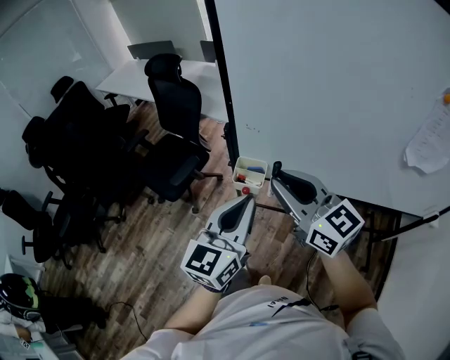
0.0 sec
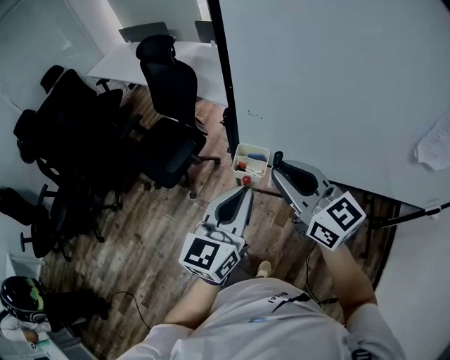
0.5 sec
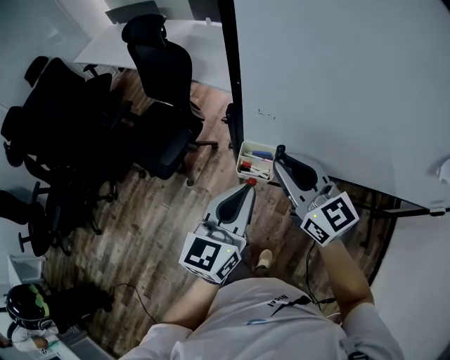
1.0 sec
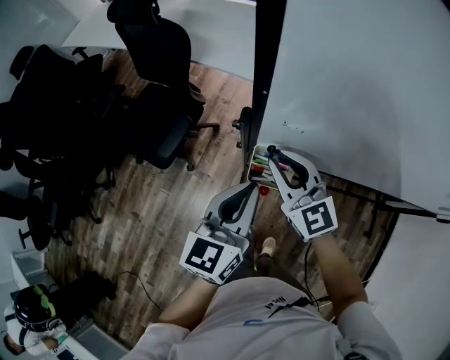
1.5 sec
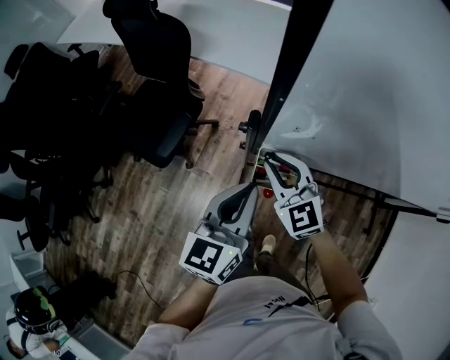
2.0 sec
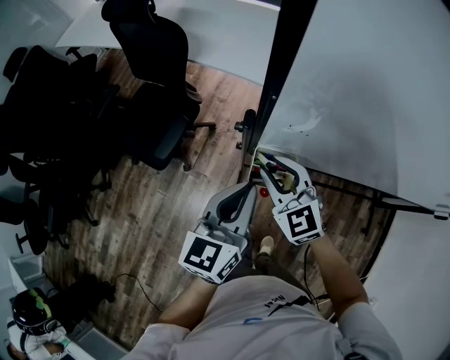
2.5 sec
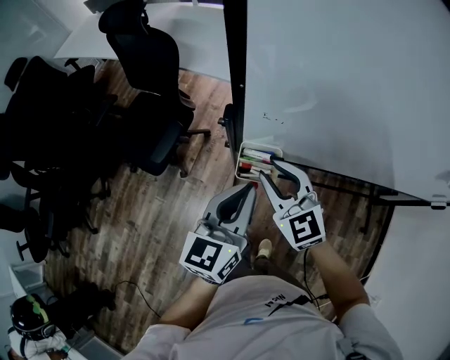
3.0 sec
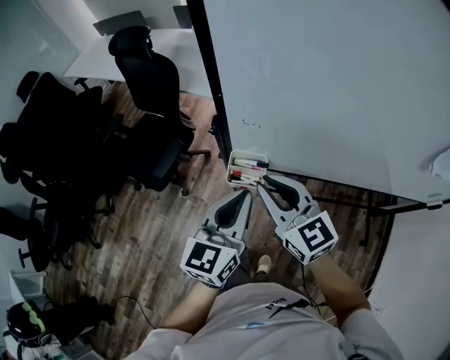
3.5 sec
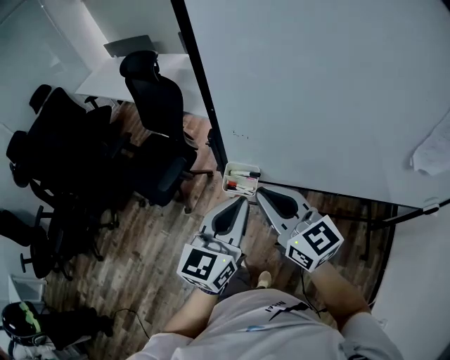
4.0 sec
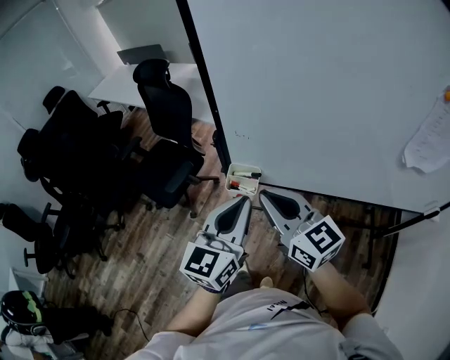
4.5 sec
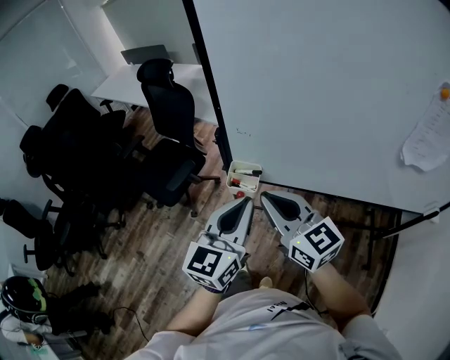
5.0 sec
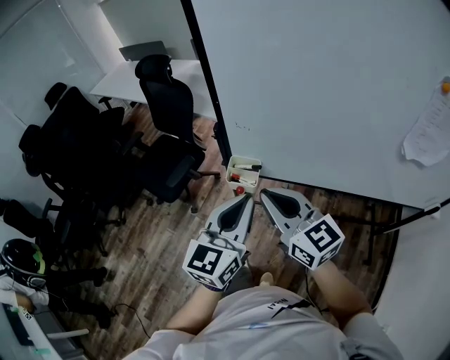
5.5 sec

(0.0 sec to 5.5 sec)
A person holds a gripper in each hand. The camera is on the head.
0.0 sec - 2.0 sec: The right gripper goes about 30 cm downward and forward, and turns by some 30 degrees. The left gripper moves forward and downward, some 20 cm.
2.0 sec - 3.5 sec: The right gripper heads upward, backward and to the right, covering approximately 15 cm, and rotates about 20 degrees, while the left gripper goes roughly 10 cm backward, upward and to the right.
3.5 sec - 5.5 sec: The two grippers go about 10 cm backward and upward.

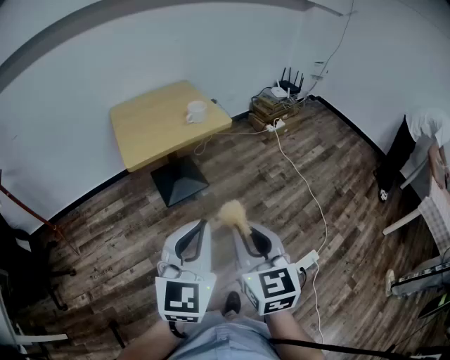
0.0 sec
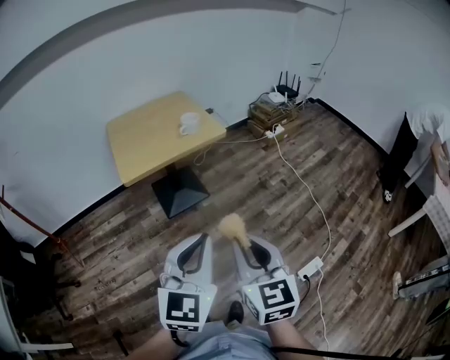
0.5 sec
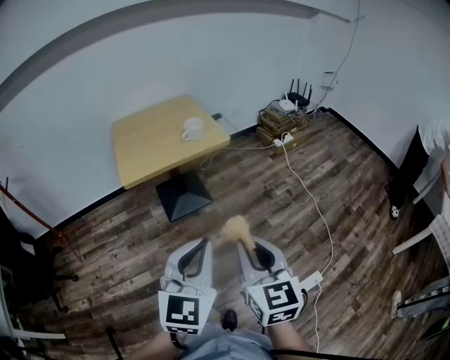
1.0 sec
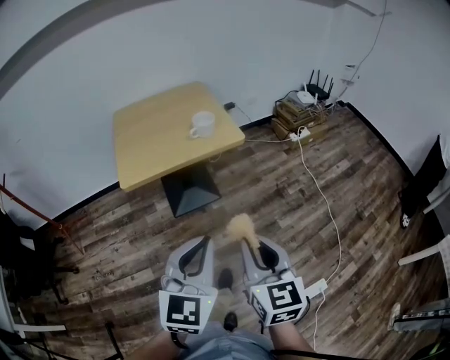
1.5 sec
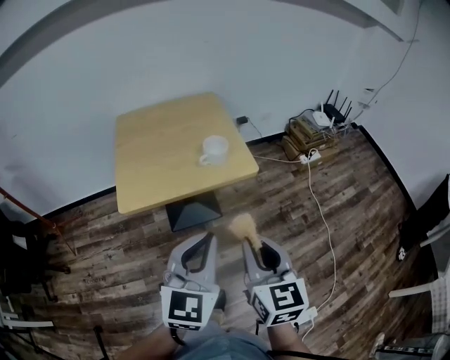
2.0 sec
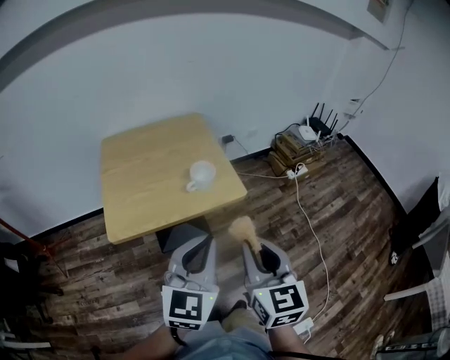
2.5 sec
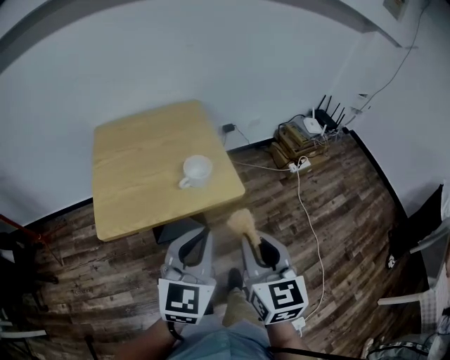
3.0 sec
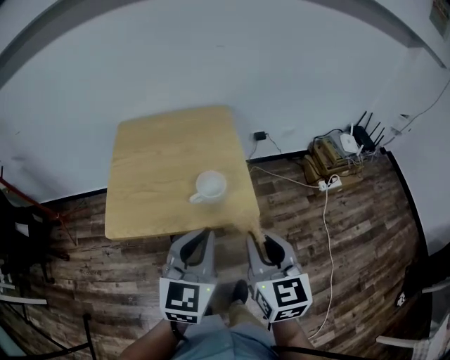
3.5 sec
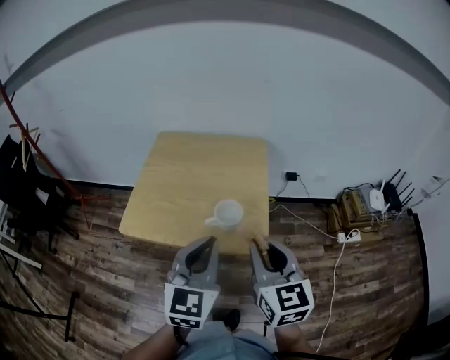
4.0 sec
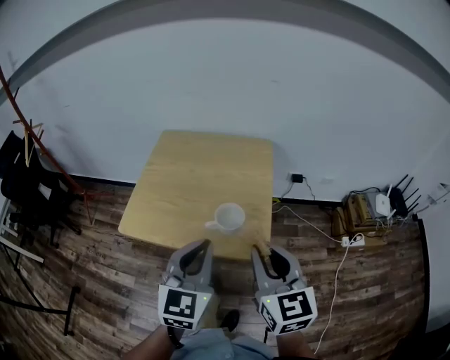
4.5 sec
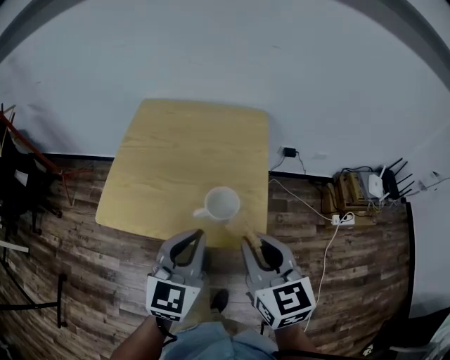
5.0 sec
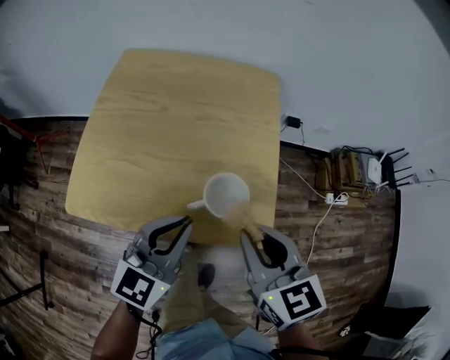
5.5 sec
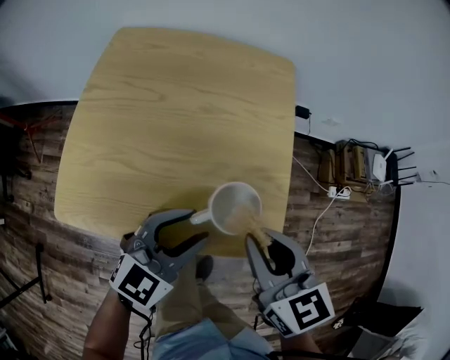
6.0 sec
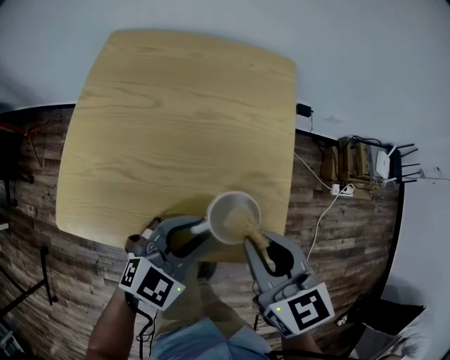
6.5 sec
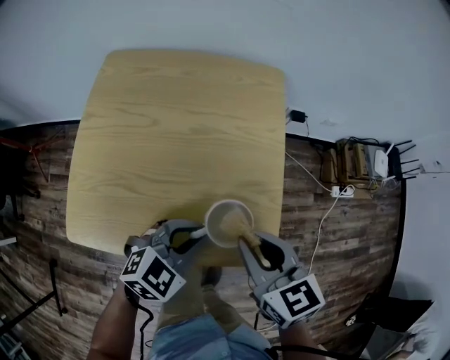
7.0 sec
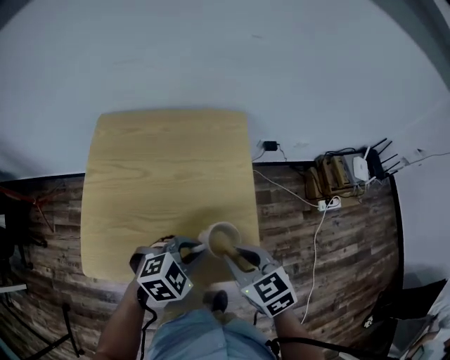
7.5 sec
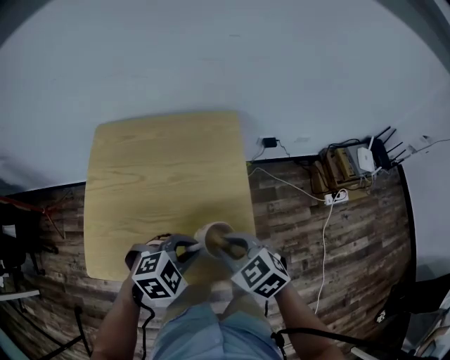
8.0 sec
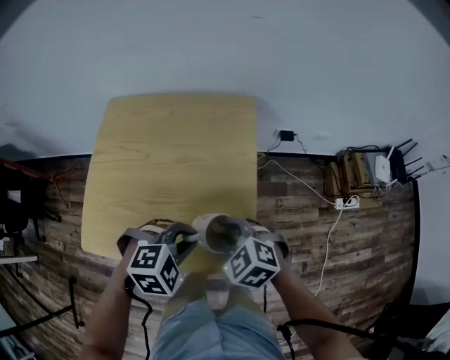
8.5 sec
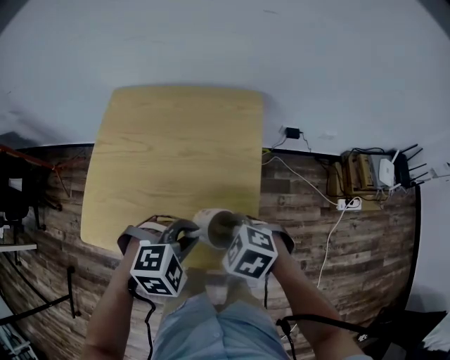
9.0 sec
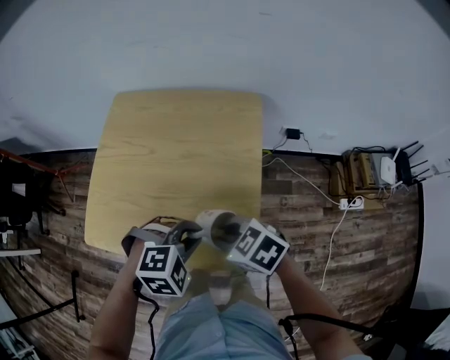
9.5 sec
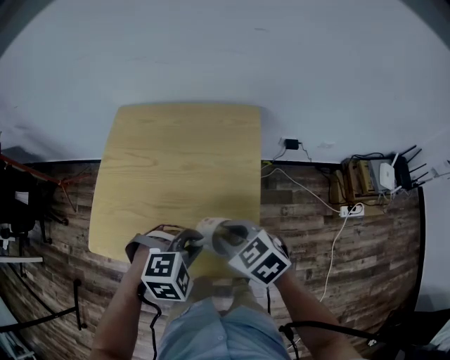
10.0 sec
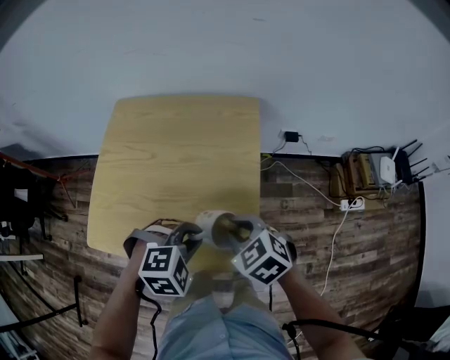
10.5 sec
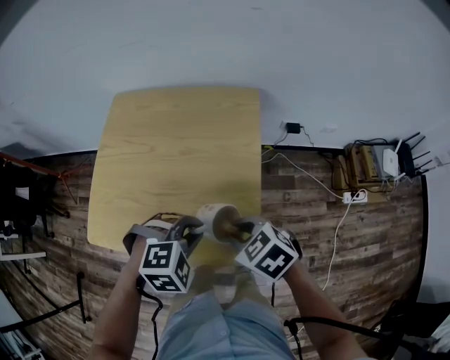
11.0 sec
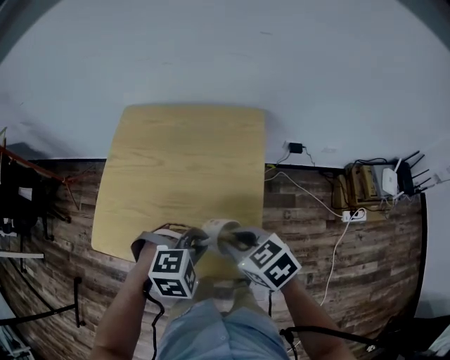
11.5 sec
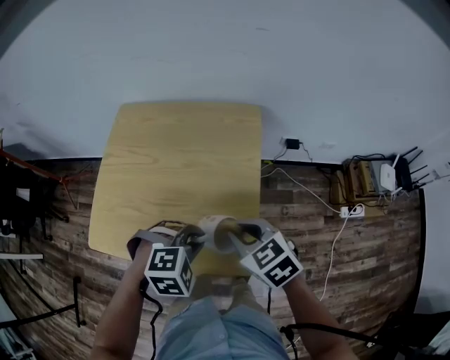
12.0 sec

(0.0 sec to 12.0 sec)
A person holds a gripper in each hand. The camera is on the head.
0.0 sec - 2.0 sec: The two grippers go about 30 cm forward.
2.0 sec - 4.0 sec: The right gripper changes place by some 30 cm, and swivels about 30 degrees. The left gripper changes place by some 25 cm, and swivels some 30 degrees.
4.0 sec - 6.0 sec: Both grippers travel together downward and forward, approximately 20 cm. The left gripper turns by some 30 degrees, and opens its fingers. Meanwhile the right gripper changes its angle by about 20 degrees.
6.0 sec - 8.0 sec: The right gripper turns by roughly 20 degrees. Meanwhile the left gripper moves roughly 5 cm, points its fingers about 40 degrees further downward, and closes its fingers.
10.0 sec - 12.0 sec: The grippers stay close to where they were, moving slightly.

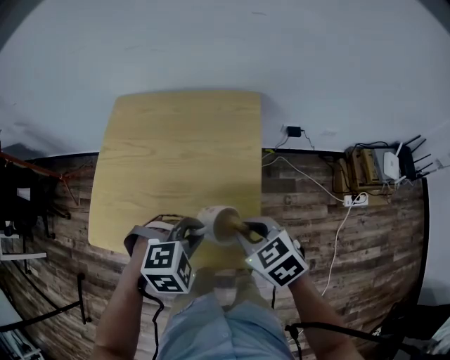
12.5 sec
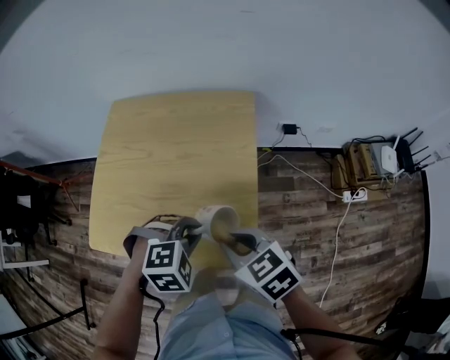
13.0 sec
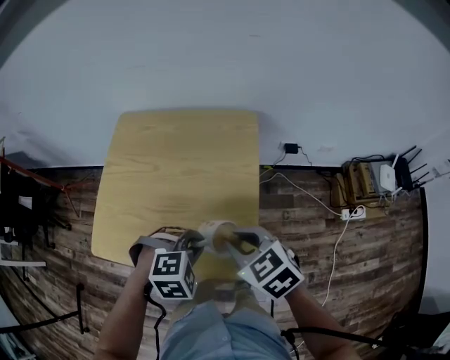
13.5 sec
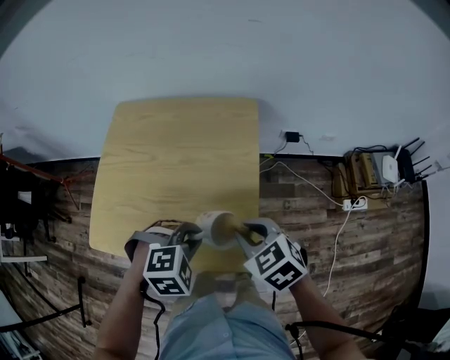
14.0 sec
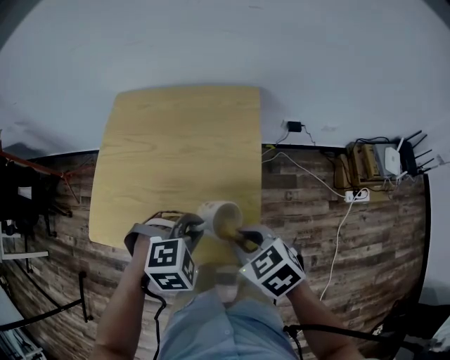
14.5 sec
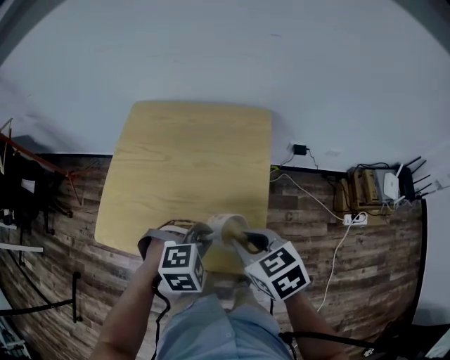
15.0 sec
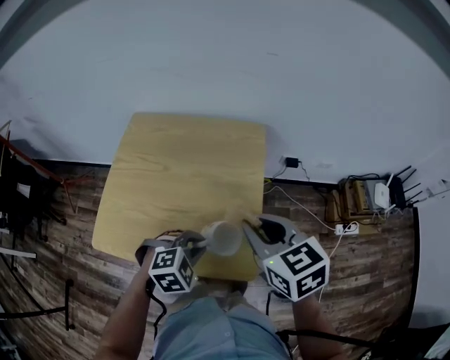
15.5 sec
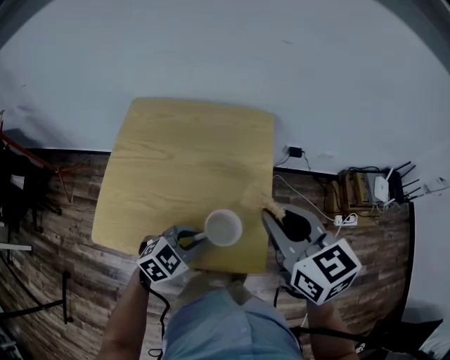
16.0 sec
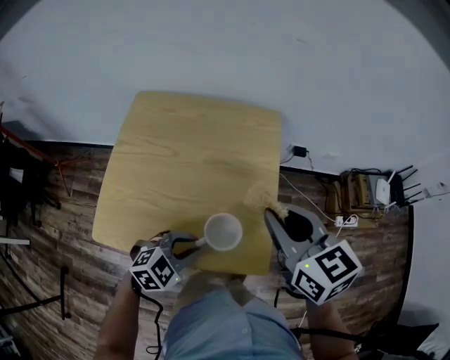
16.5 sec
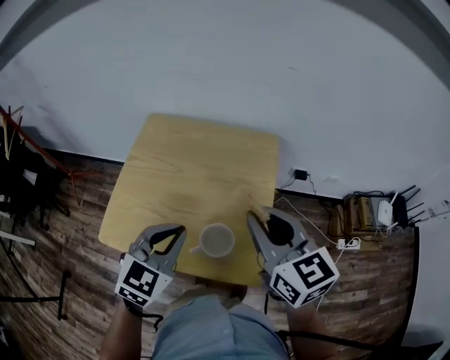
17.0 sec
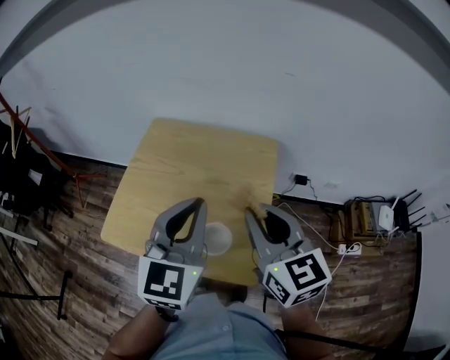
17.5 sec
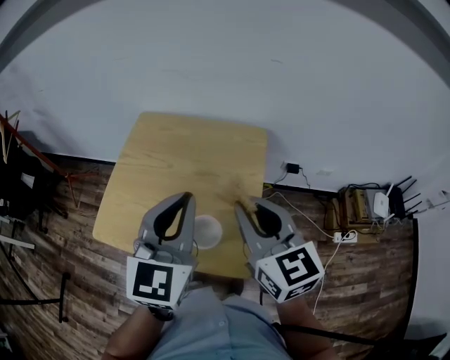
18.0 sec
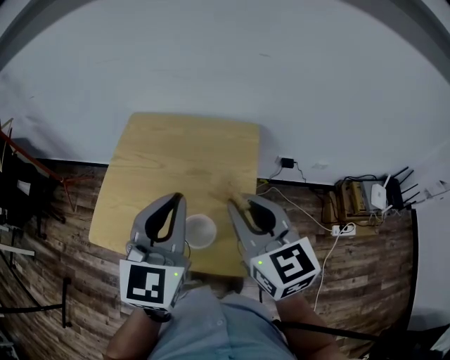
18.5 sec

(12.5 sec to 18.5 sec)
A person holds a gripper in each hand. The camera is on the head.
12.5 sec - 14.5 sec: The grippers make only small movements.
14.5 sec - 16.5 sec: The right gripper shifts approximately 15 cm upward and forward, and turns by some 30 degrees, while the left gripper shifts about 5 cm to the left, and rotates approximately 30 degrees.
16.5 sec - 18.5 sec: The left gripper is displaced upward by roughly 30 cm, and tilts its fingers roughly 40 degrees upward.

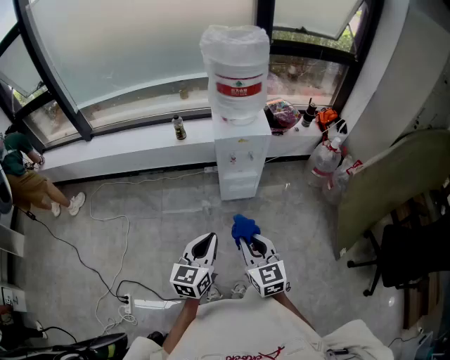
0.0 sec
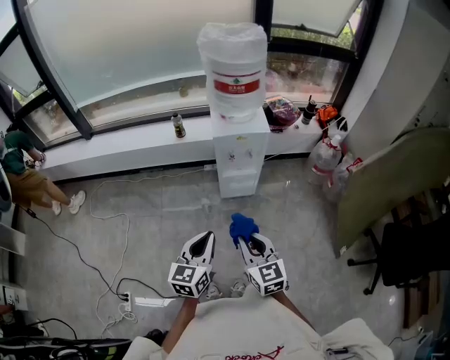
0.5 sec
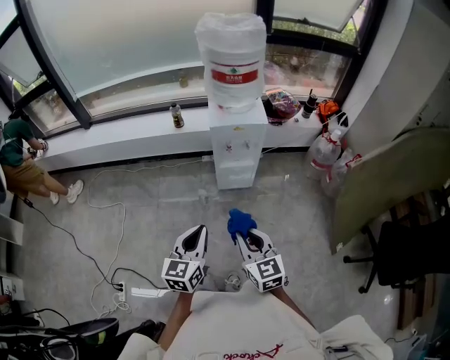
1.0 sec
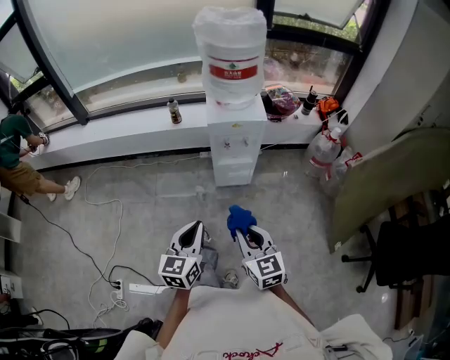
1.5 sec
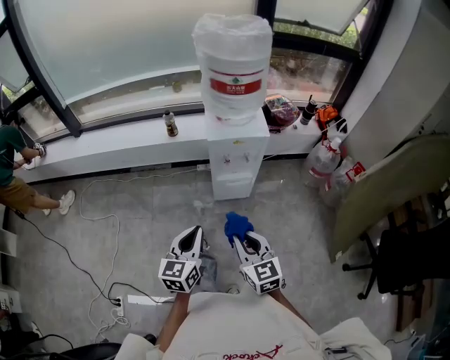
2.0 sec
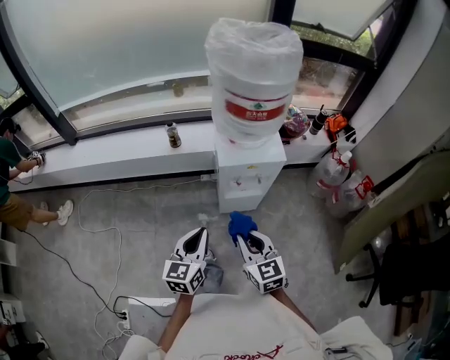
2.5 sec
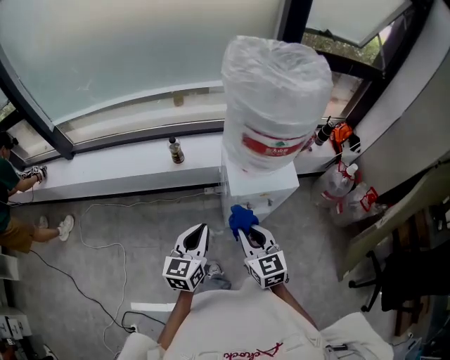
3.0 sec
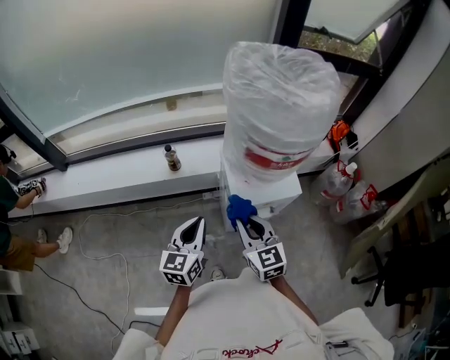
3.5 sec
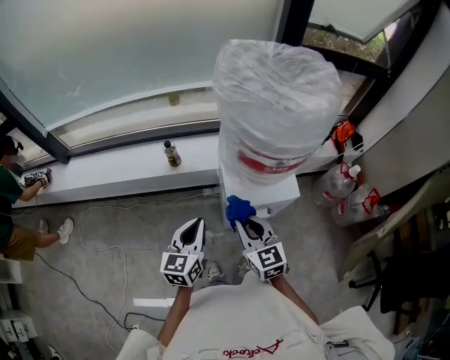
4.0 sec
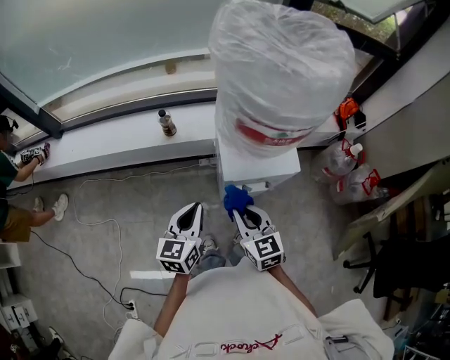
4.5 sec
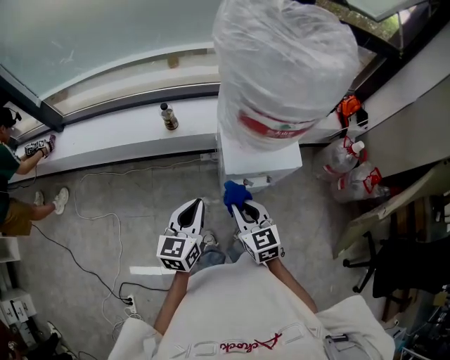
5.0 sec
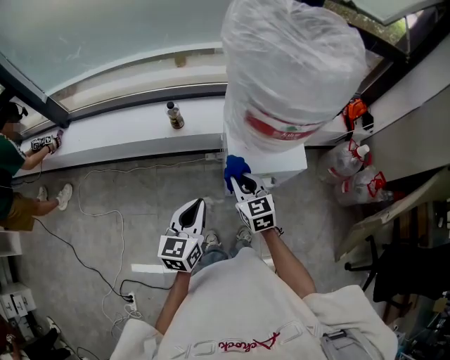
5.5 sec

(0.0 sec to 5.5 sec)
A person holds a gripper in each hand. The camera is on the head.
0.0 sec - 2.0 sec: The grippers both shift forward by approximately 10 cm.
2.0 sec - 3.5 sec: The grippers both shift forward by roughly 35 cm.
3.5 sec - 5.5 sec: The right gripper is displaced downward and forward by about 10 cm, while the left gripper changes place by roughly 5 cm.
